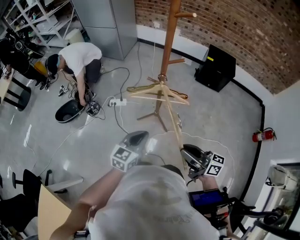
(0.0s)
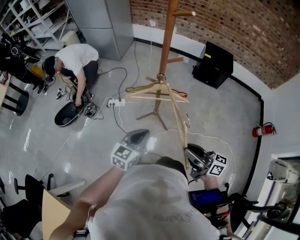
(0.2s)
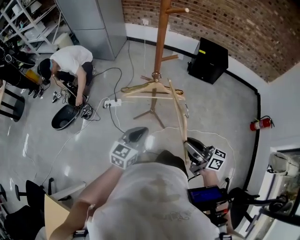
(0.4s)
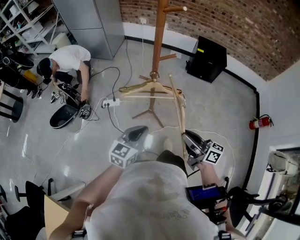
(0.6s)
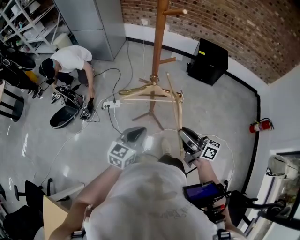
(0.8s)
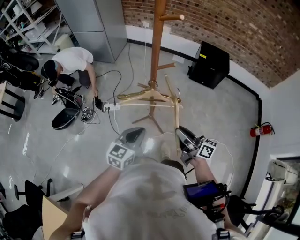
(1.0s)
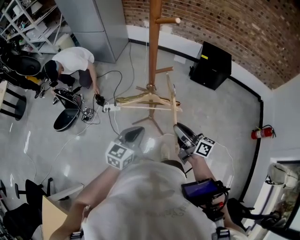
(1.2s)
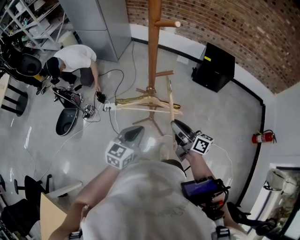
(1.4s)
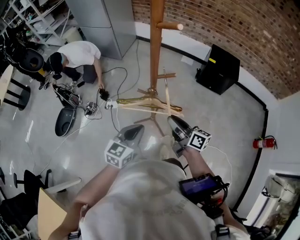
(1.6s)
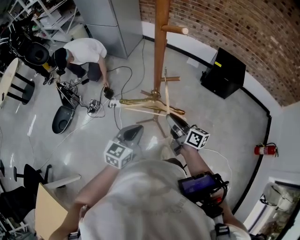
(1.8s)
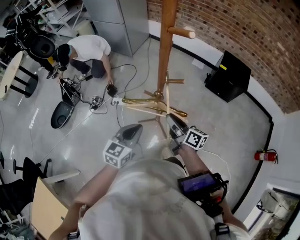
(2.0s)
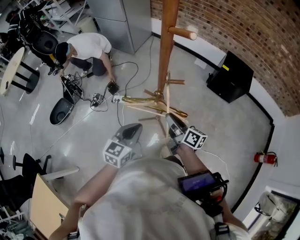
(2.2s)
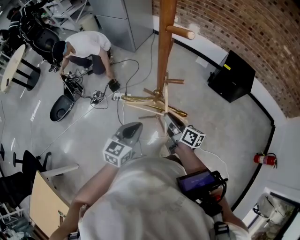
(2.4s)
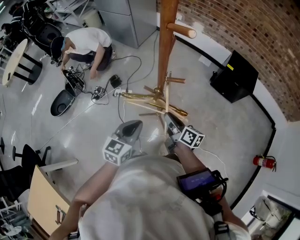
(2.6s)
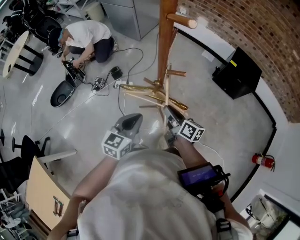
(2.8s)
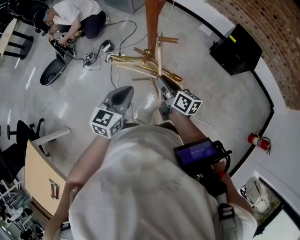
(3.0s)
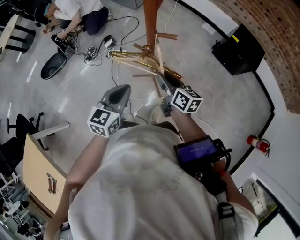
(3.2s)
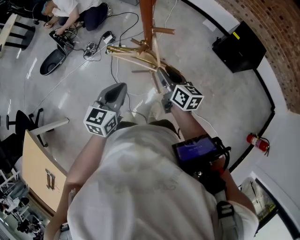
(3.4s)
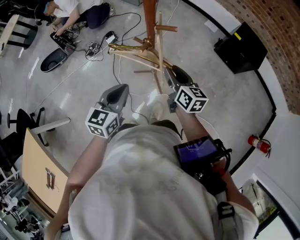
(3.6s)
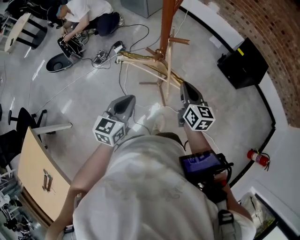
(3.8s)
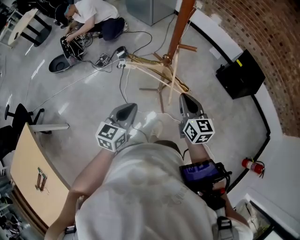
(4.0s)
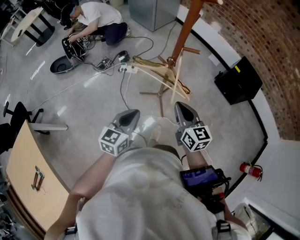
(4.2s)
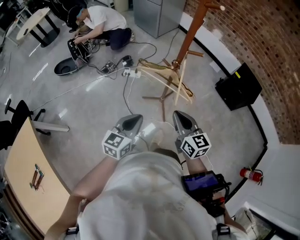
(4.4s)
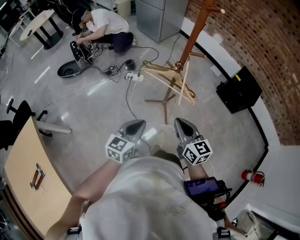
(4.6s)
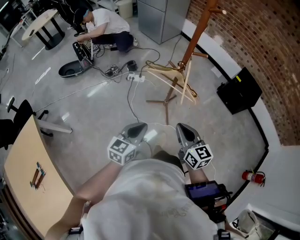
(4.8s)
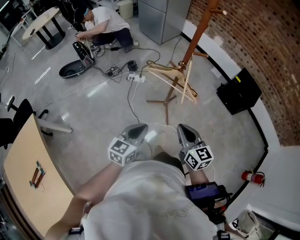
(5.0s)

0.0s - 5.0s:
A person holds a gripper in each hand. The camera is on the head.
0.0s - 1.6s: The left gripper moves forward and to the right, about 15 cm; the right gripper heads forward, covering roughly 25 cm.
1.6s - 3.4s: The left gripper rotates some 20 degrees. Meanwhile the right gripper travels forward and downward by about 10 cm, and opens up.
3.4s - 5.0s: The grippers both shift backward by some 25 cm. The right gripper swivels approximately 30 degrees, and closes.

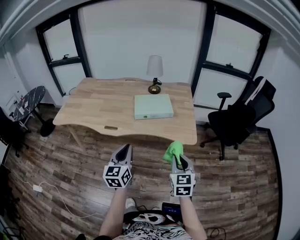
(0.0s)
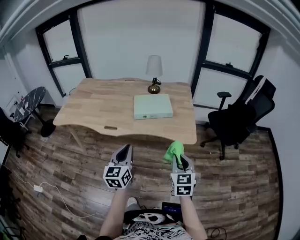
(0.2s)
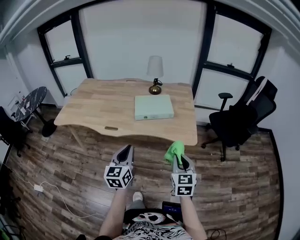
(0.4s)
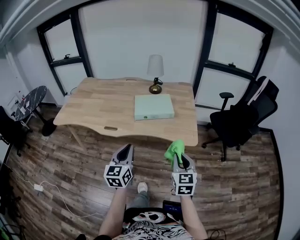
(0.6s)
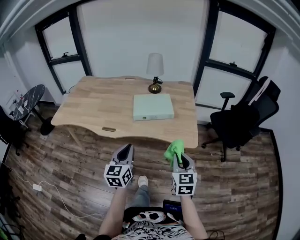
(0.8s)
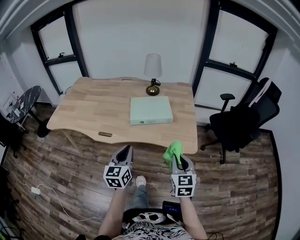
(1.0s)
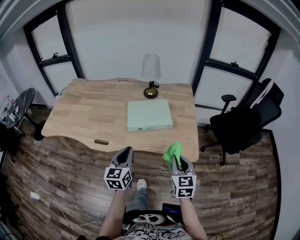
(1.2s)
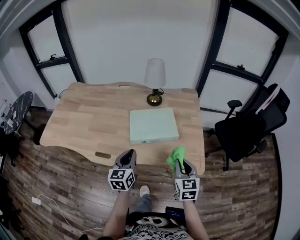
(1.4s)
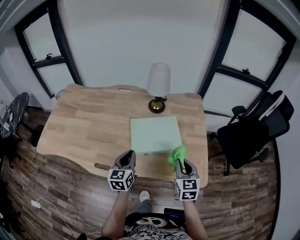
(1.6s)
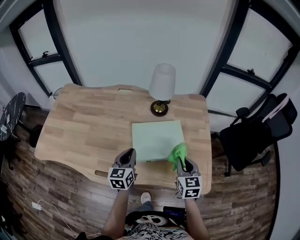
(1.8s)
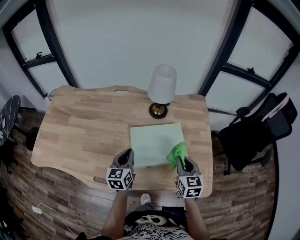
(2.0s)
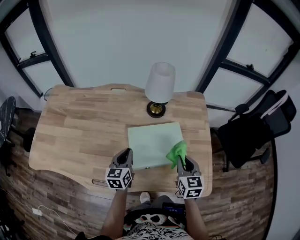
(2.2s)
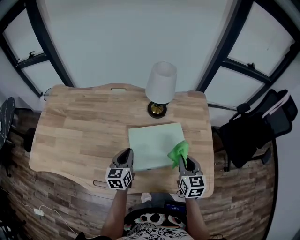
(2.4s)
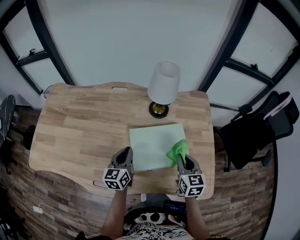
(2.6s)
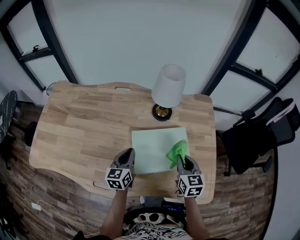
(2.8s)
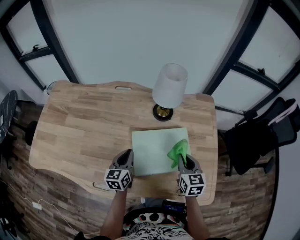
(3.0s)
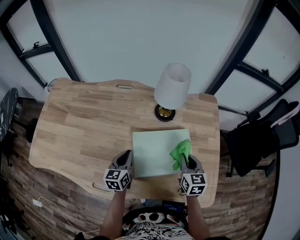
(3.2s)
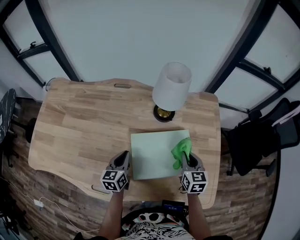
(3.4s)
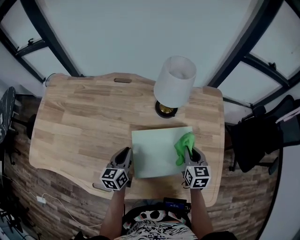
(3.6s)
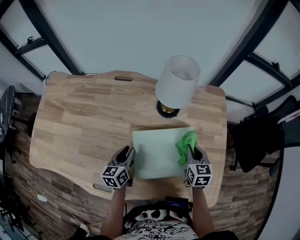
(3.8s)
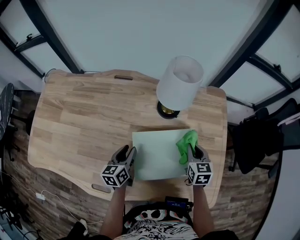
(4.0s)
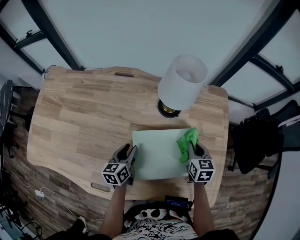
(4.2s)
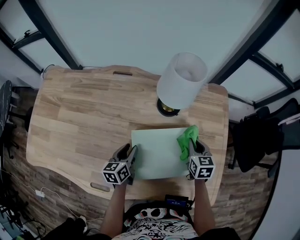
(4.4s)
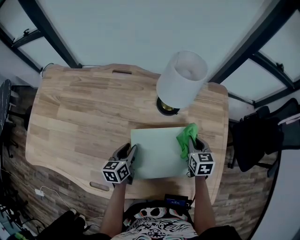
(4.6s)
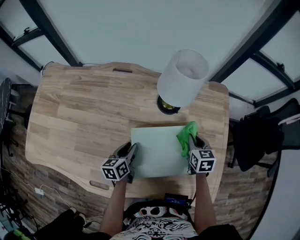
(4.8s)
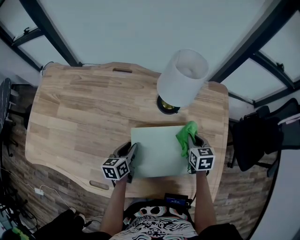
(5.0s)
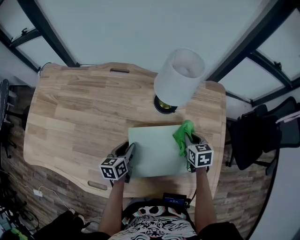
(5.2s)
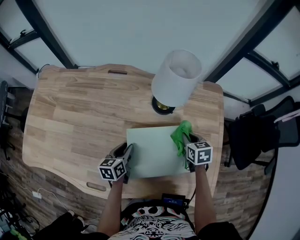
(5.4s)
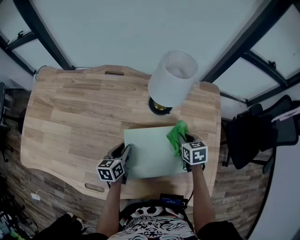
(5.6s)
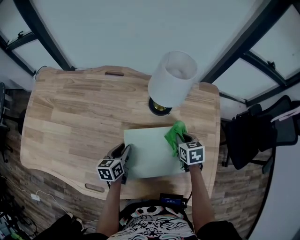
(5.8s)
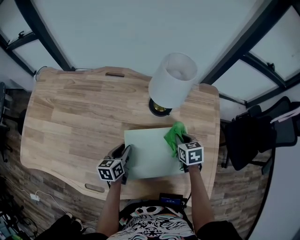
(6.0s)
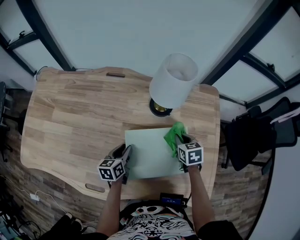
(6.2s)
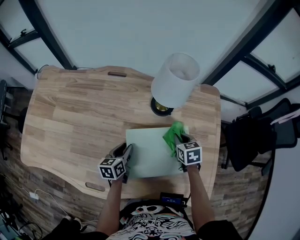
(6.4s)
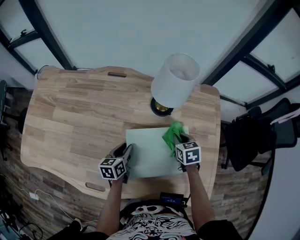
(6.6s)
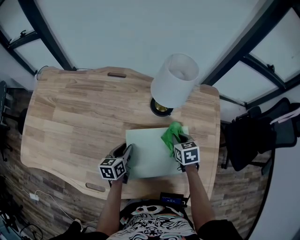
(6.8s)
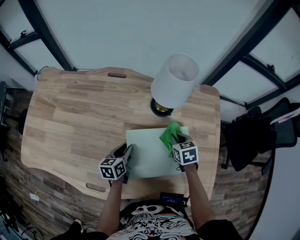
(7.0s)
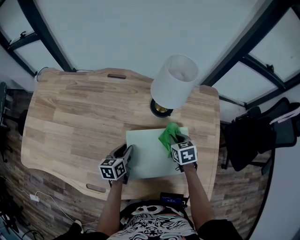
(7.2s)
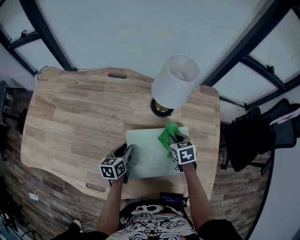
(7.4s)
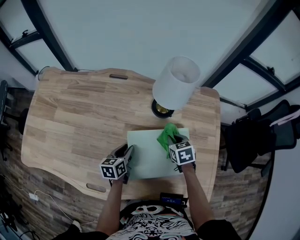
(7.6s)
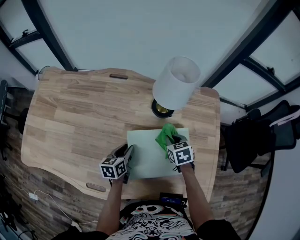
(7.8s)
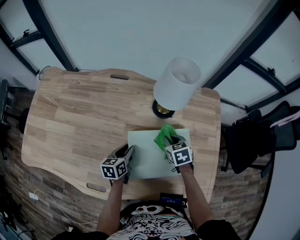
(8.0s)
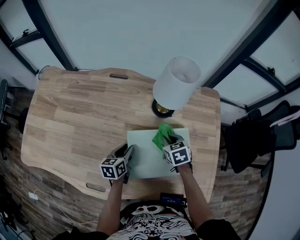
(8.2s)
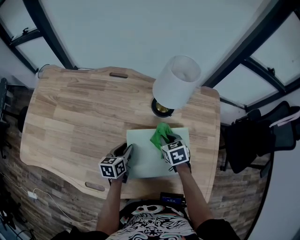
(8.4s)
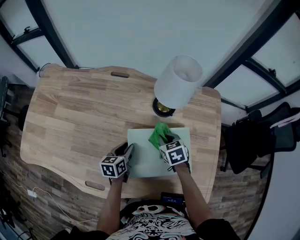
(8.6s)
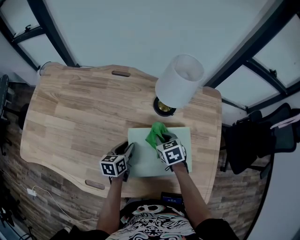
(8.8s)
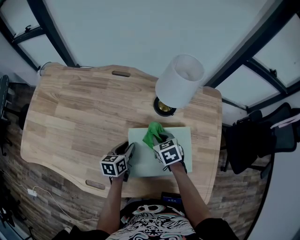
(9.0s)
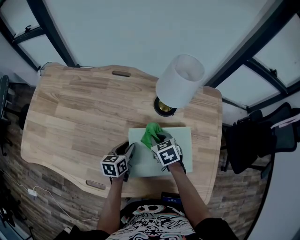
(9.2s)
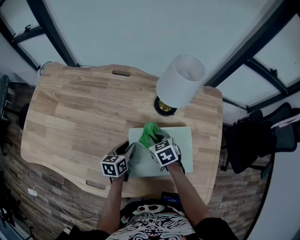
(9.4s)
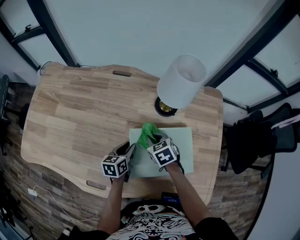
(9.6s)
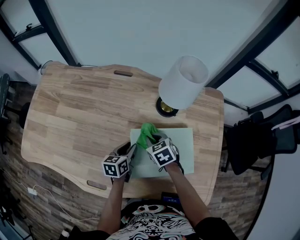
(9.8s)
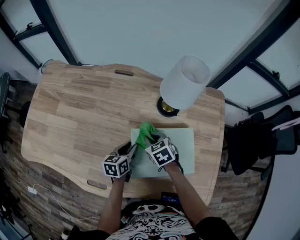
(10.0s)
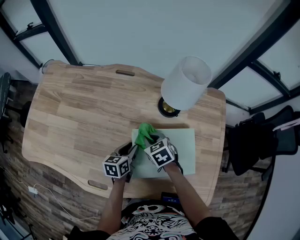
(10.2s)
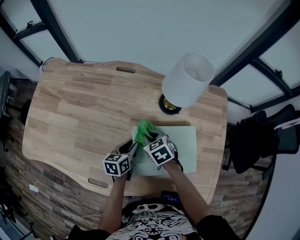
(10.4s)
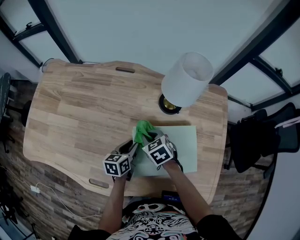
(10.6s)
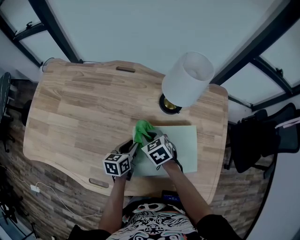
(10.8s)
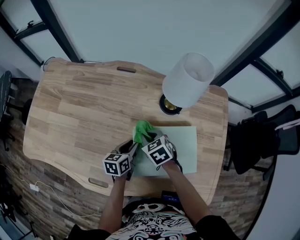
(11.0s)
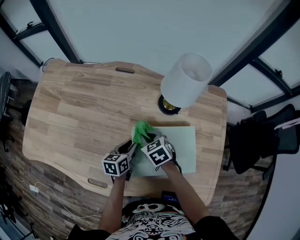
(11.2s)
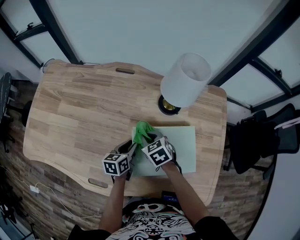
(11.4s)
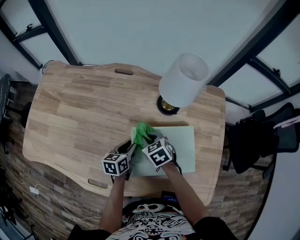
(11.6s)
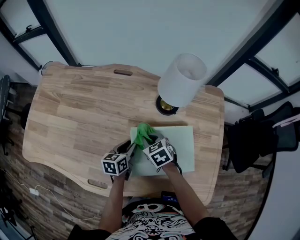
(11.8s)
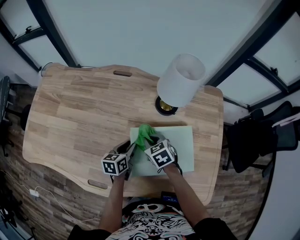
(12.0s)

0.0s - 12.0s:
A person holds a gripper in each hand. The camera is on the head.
0.0s - 1.6s: The grippers both shift forward by some 35 cm.
1.6s - 3.0s: The right gripper moves forward, about 15 cm, while the left gripper heads forward and downward, covering roughly 15 cm.
3.0s - 4.4s: The right gripper moves forward and downward, approximately 15 cm, while the left gripper travels downward by some 5 cm, and opens its fingers.
4.4s - 6.0s: The grippers make only small movements.
6.0s - 7.6s: There are only small adjustments of the grippers.
7.6s - 9.0s: The right gripper shifts approximately 10 cm to the left.
9.0s - 10.4s: The right gripper heads to the left, covering approximately 5 cm.
10.4s - 12.0s: The grippers make only small movements.

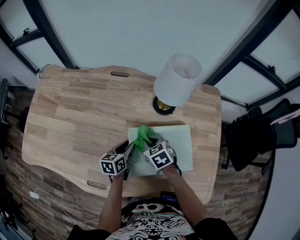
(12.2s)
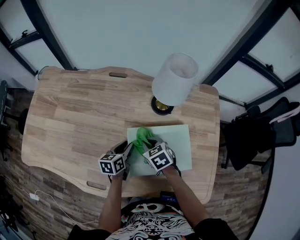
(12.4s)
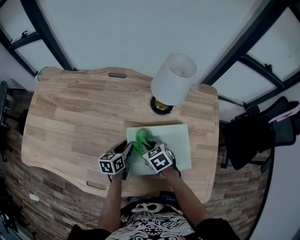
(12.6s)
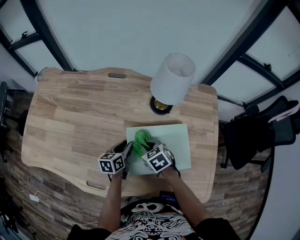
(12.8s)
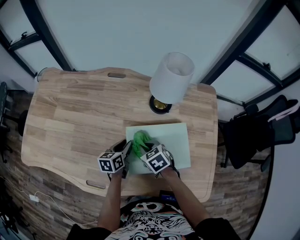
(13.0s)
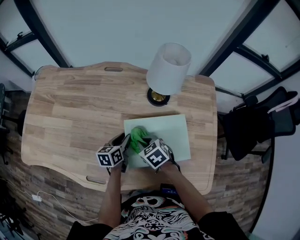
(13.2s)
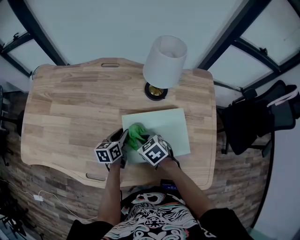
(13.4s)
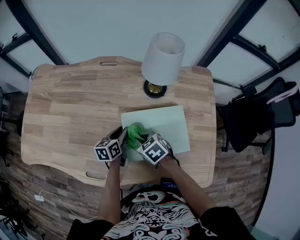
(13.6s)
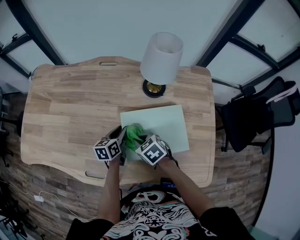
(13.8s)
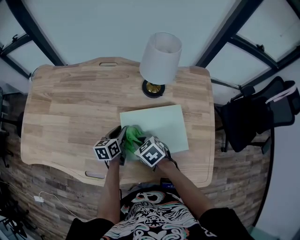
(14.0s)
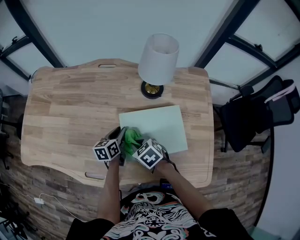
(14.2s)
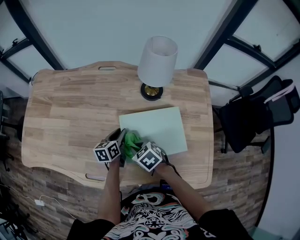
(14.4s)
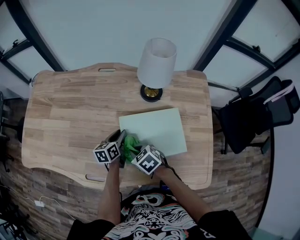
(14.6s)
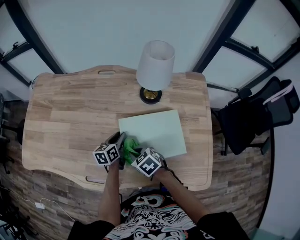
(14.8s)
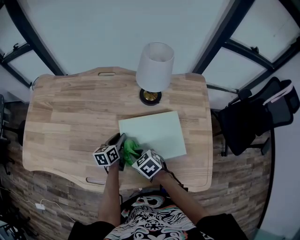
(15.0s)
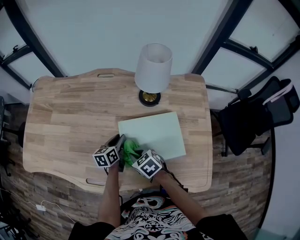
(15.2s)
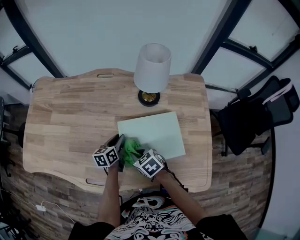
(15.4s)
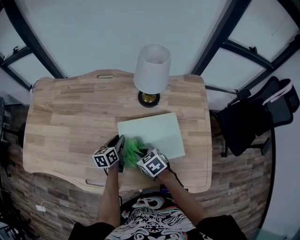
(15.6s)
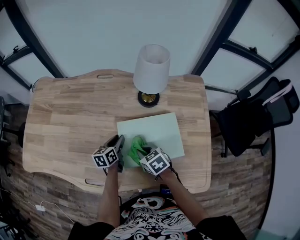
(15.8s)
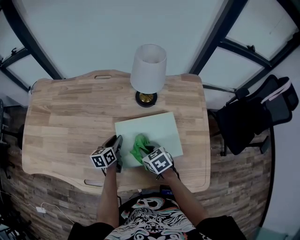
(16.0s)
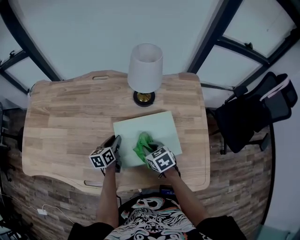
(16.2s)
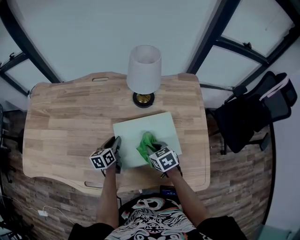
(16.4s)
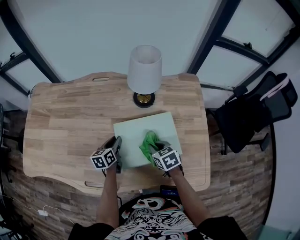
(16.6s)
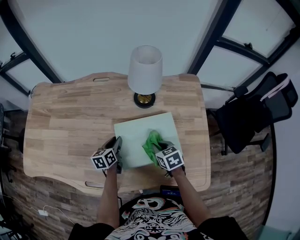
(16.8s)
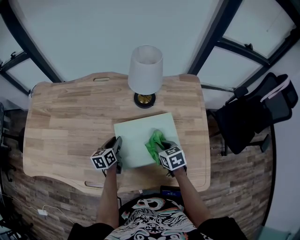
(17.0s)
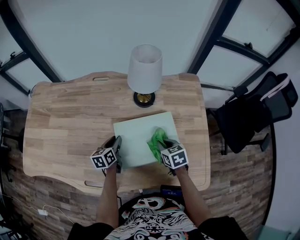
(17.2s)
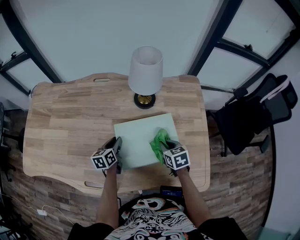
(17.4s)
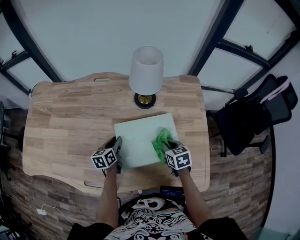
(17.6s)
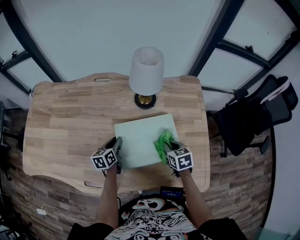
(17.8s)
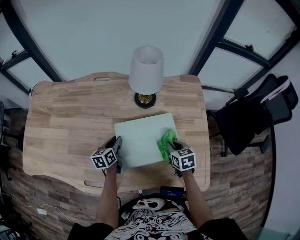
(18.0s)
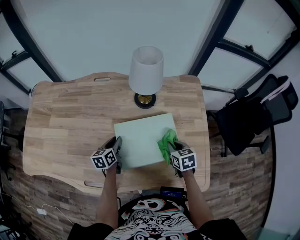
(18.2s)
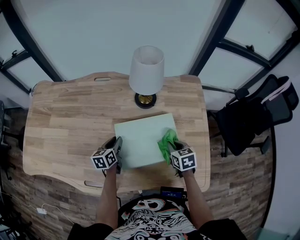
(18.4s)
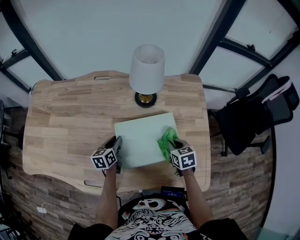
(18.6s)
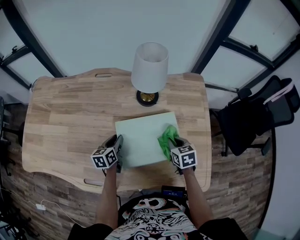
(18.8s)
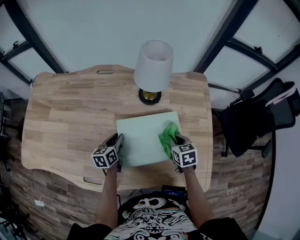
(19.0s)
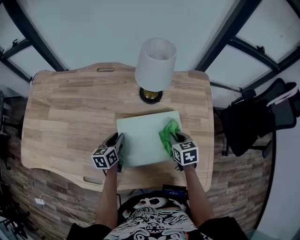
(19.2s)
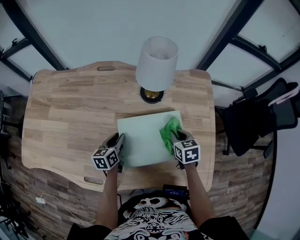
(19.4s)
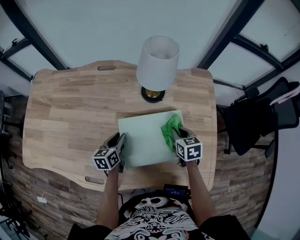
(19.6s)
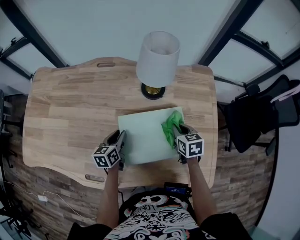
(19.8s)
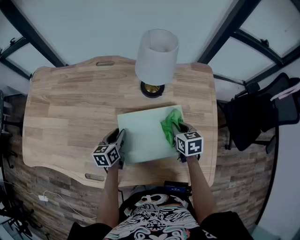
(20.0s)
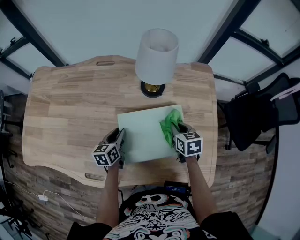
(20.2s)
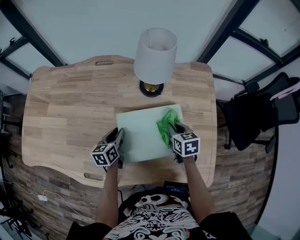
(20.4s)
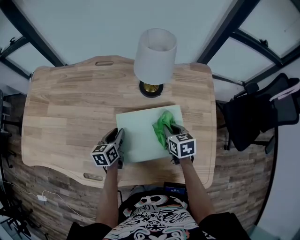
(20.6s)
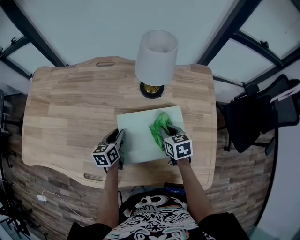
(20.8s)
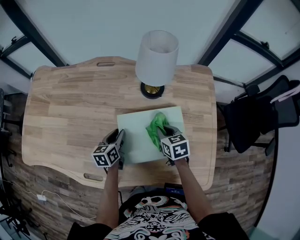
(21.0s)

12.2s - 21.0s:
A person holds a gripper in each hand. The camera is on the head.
12.2s - 13.6s: The right gripper moves backward, about 5 cm.
13.6s - 15.2s: There are only small adjustments of the grippers.
15.2s - 16.6s: The right gripper travels to the right by some 15 cm.
16.6s - 18.0s: The right gripper heads to the right, covering about 10 cm.
18.0s - 19.6s: The right gripper heads forward, covering about 5 cm.
19.6s - 21.0s: The right gripper travels to the left by approximately 5 cm.
